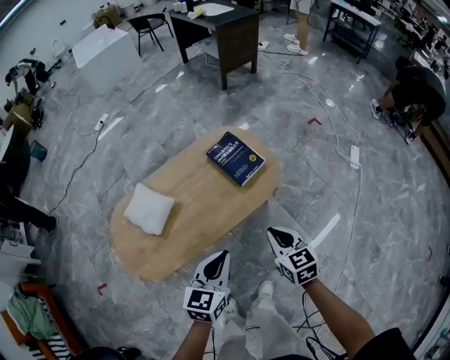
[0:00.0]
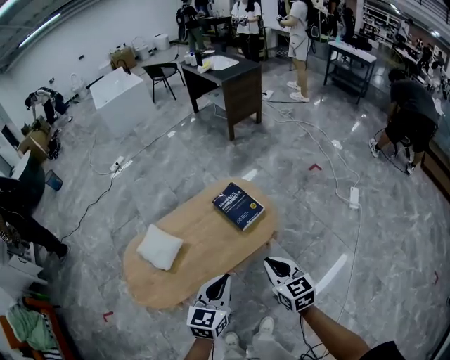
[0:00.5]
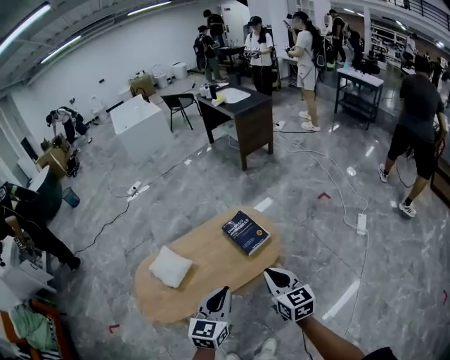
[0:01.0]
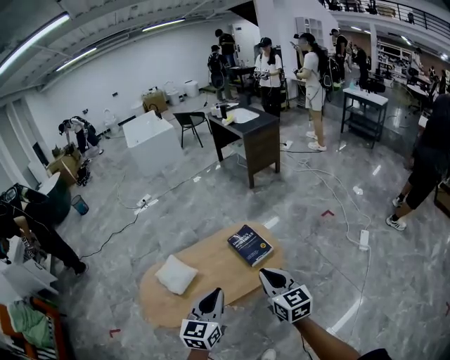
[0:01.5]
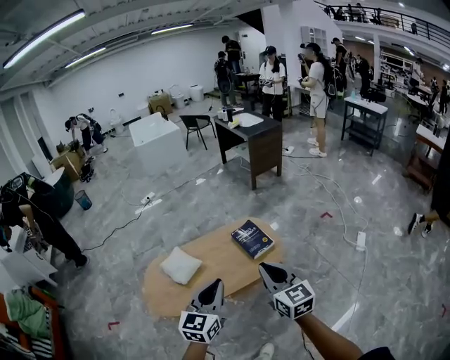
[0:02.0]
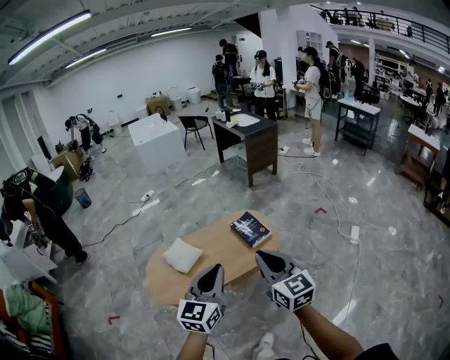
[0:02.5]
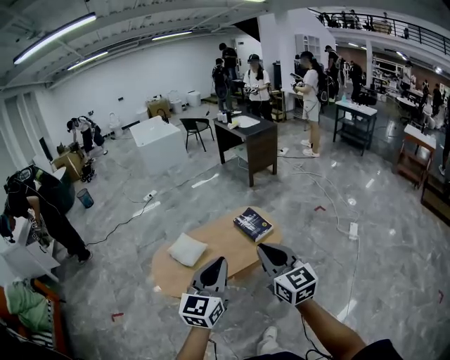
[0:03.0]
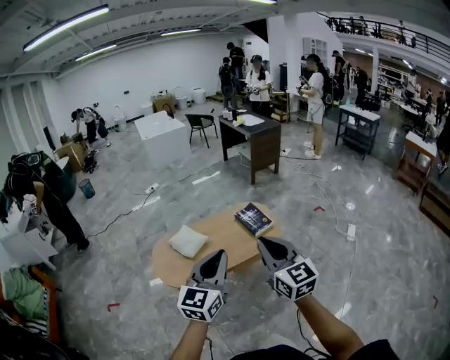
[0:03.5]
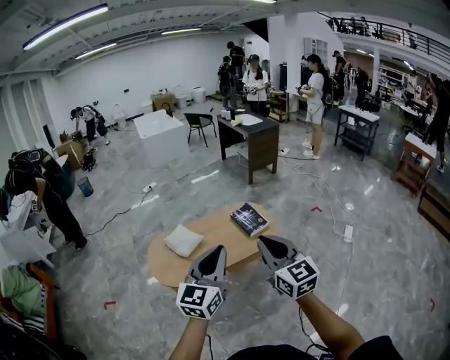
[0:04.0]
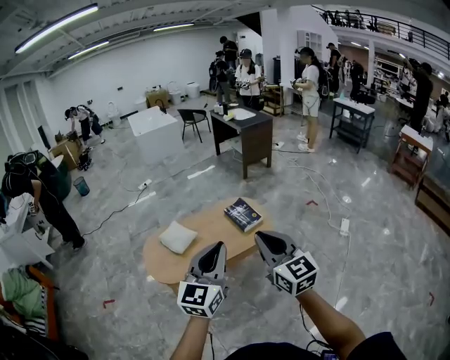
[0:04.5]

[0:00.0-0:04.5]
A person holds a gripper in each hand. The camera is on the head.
0:00.0 to 0:02.0: The two grippers go about 25 cm upward. The right gripper changes its angle by about 30 degrees; the left gripper changes its angle by some 20 degrees.
0:02.0 to 0:04.5: Both grippers move backward and upward, roughly 20 cm.

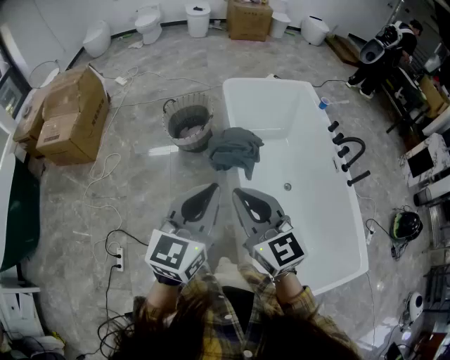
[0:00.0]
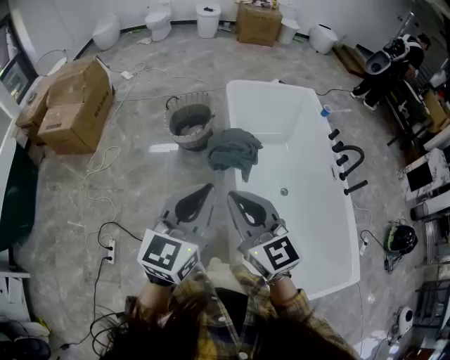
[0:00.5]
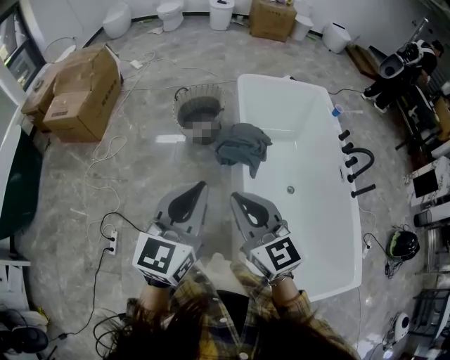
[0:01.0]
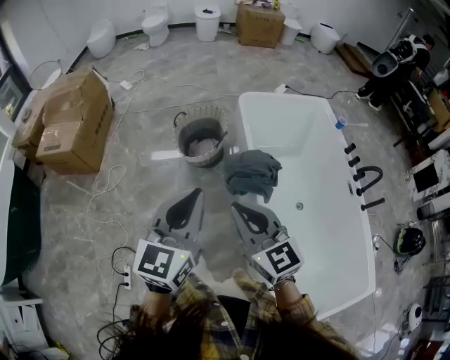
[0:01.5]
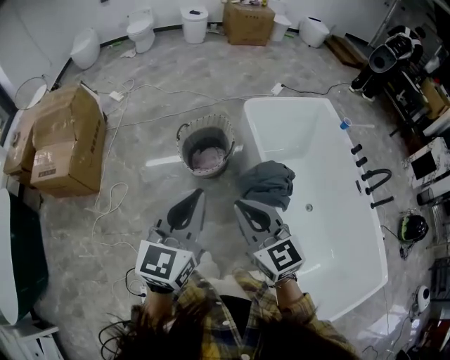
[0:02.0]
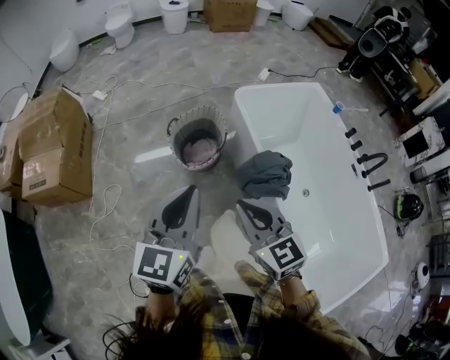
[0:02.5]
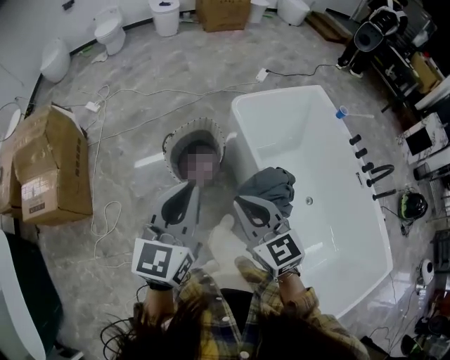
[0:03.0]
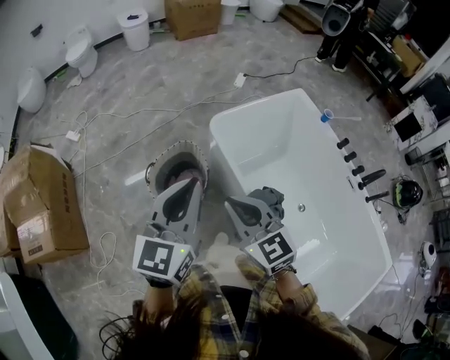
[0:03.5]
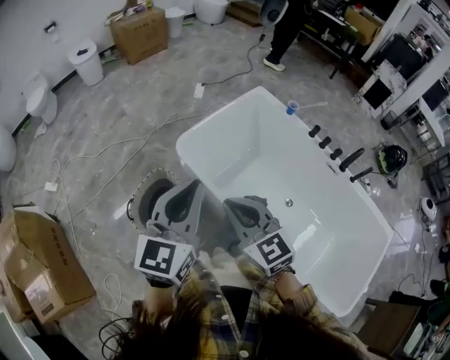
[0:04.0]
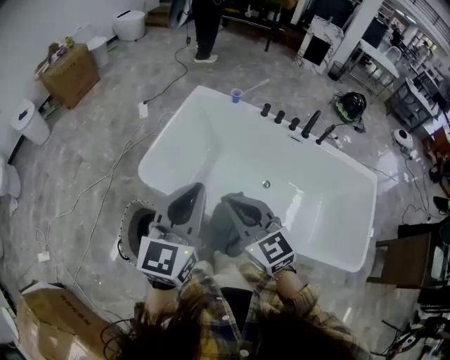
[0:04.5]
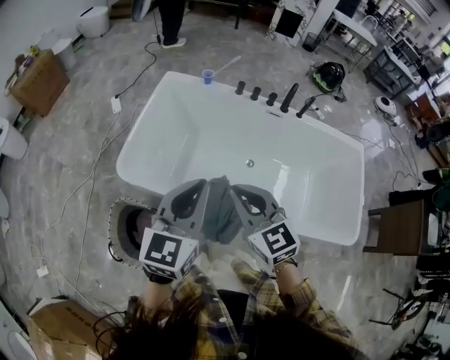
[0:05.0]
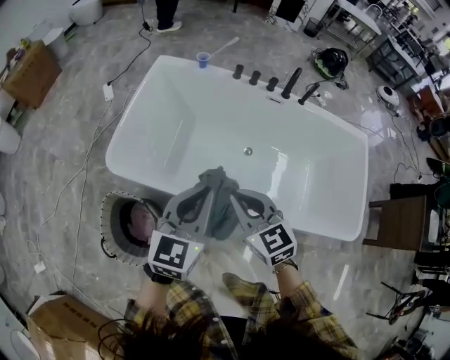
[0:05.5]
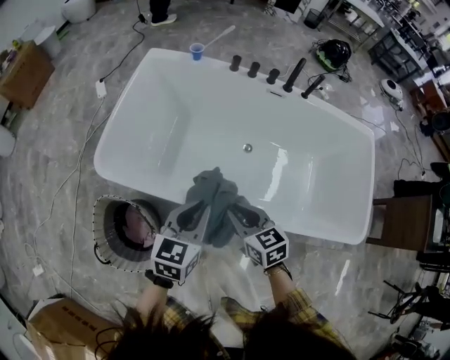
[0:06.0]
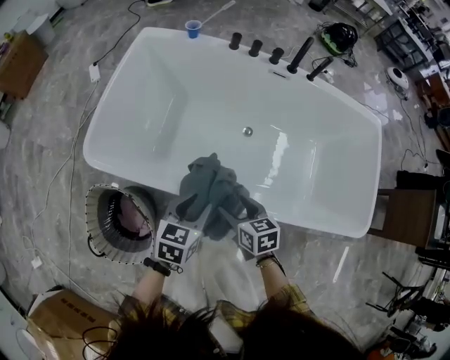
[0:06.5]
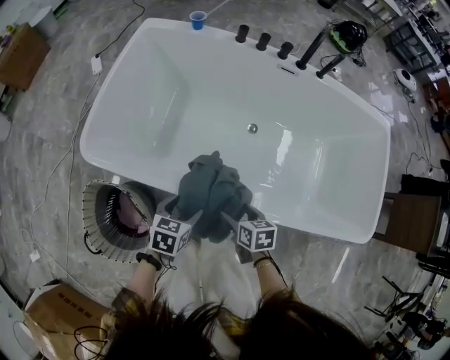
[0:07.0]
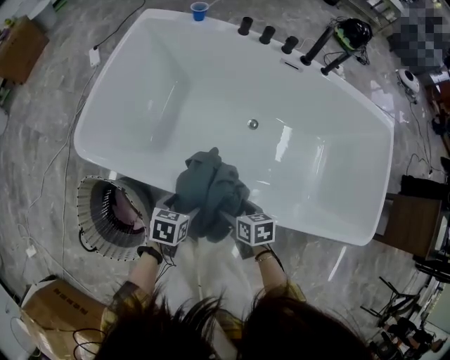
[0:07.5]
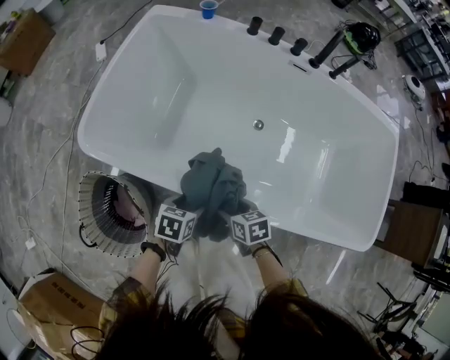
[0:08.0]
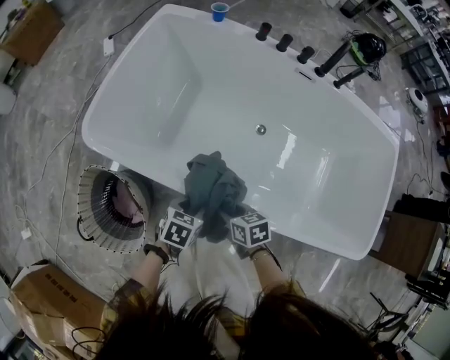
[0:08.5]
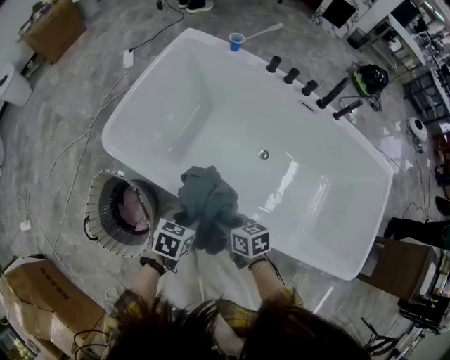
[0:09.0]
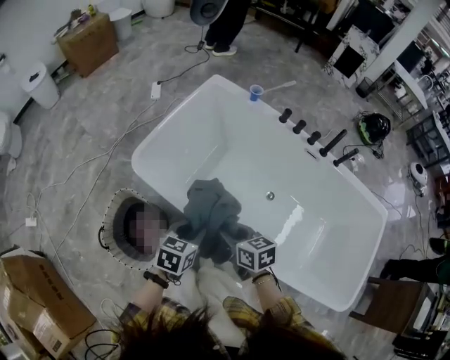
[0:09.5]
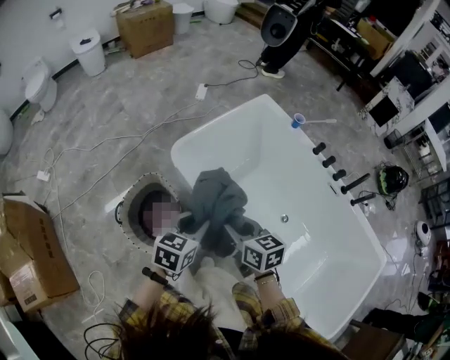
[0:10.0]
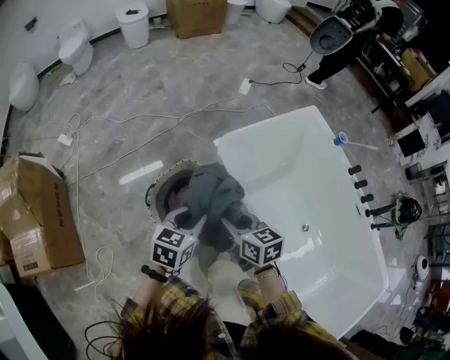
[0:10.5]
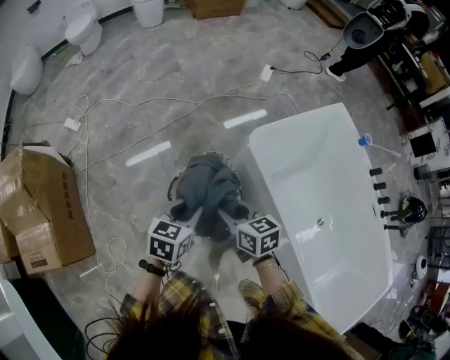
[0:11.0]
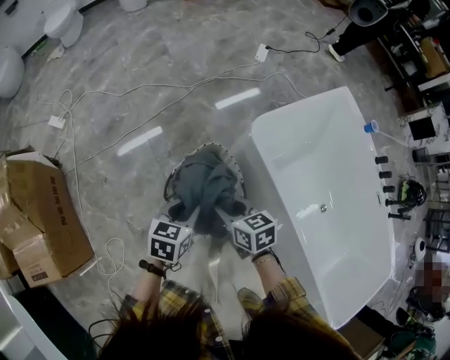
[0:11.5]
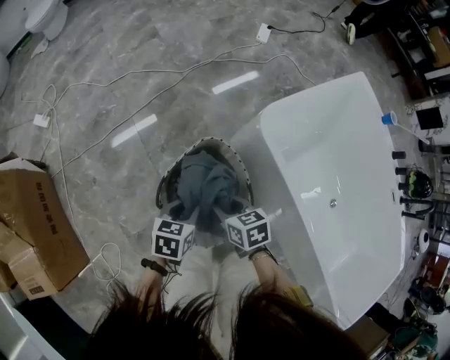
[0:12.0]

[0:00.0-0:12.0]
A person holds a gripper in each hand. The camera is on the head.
0:00.0 to 0:02.0: Both grippers move forward and to the left, roughly 30 cm.
0:02.0 to 0:04.0: The left gripper moves some 40 cm, and swivels roughly 30 degrees. Meanwhile the right gripper moves about 35 cm, and turns by about 30 degrees.
0:04.0 to 0:06.0: The two grippers go approximately 25 cm downward. The left gripper changes its angle by some 50 degrees, while the right gripper changes its angle by roughly 50 degrees.
0:06.0 to 0:08.0: Both grippers move downward, approximately 25 cm. The left gripper tips its fingers downward by approximately 30 degrees, and opens up; the right gripper rotates roughly 30 degrees, and opens.
0:08.0 to 0:10.0: Both grippers travel together upward, about 30 cm. The right gripper swivels approximately 40 degrees, and closes its fingers. Meanwhile the left gripper rotates some 40 degrees, and closes up.
0:10.0 to 0:12.0: The right gripper moves to the left, downward and forward, roughly 50 cm, and swivels roughly 30 degrees. The left gripper shifts approximately 40 cm to the left and downward, and rotates about 30 degrees.

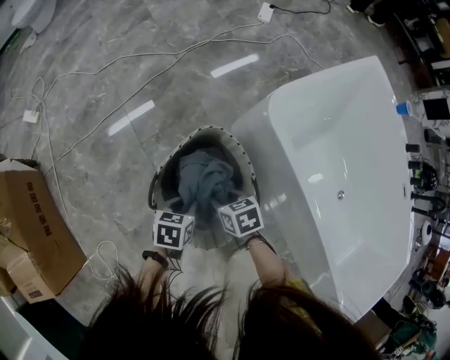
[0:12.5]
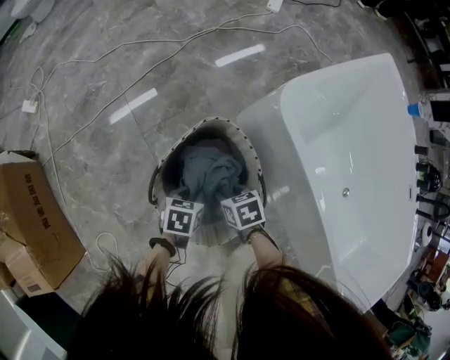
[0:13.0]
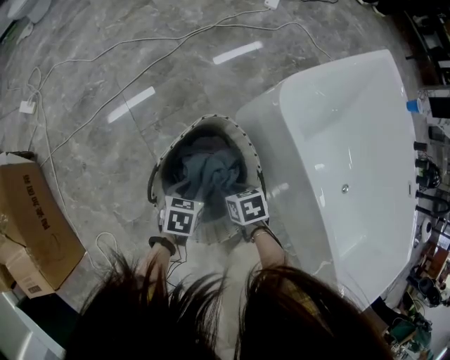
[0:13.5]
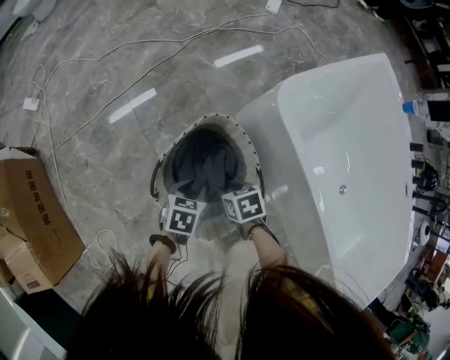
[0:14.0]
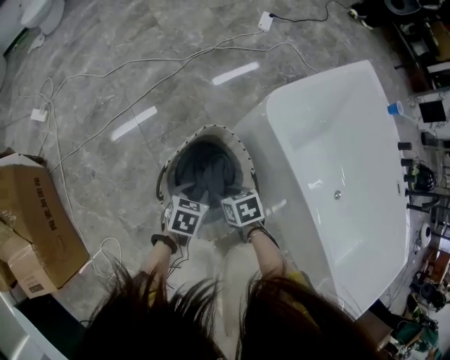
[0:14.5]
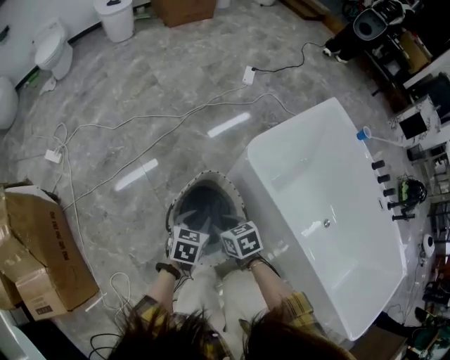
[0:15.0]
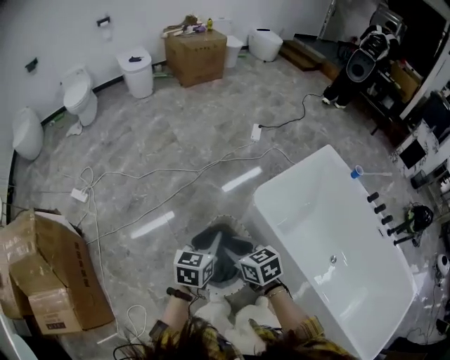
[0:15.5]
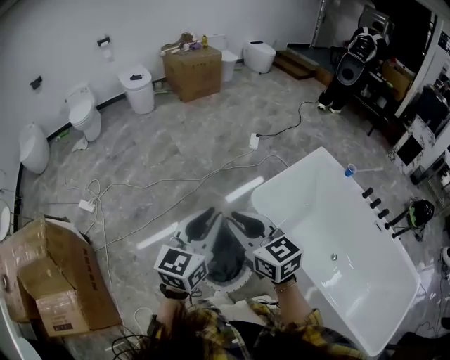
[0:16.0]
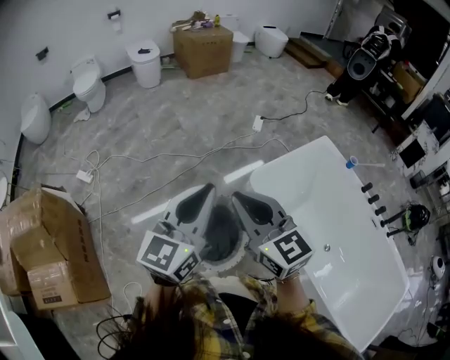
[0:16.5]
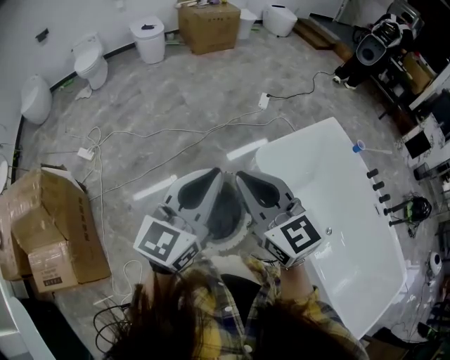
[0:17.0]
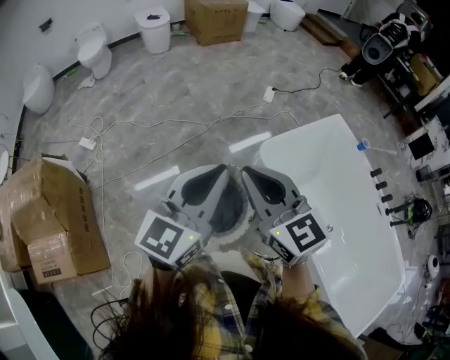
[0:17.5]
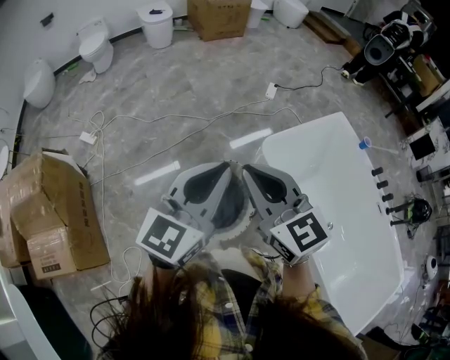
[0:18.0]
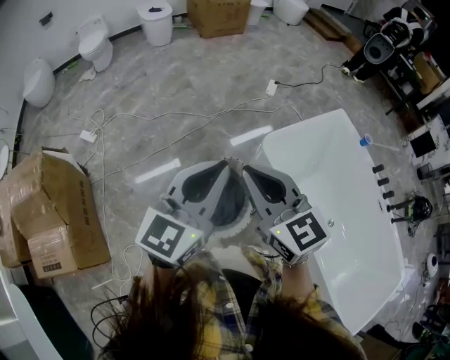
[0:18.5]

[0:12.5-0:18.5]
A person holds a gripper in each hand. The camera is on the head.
0:12.5 to 0:14.5: The right gripper travels downward and back again, some 5 cm each way.
0:14.5 to 0:16.5: Both grippers travel together upward, approximately 60 cm. The right gripper tips its fingers upward by about 60 degrees. The left gripper angles its fingers upward, by approximately 60 degrees.
0:16.5 to 0:18.5: The grippers make only small movements.

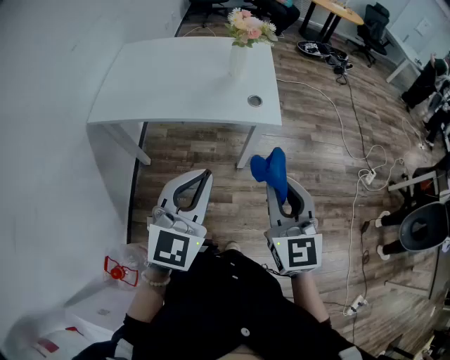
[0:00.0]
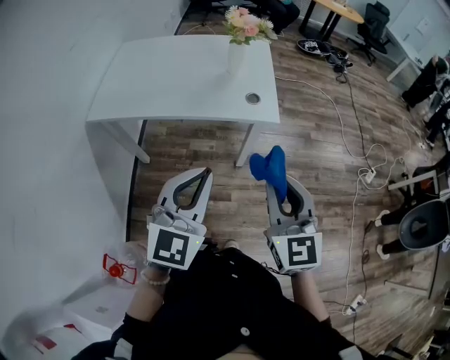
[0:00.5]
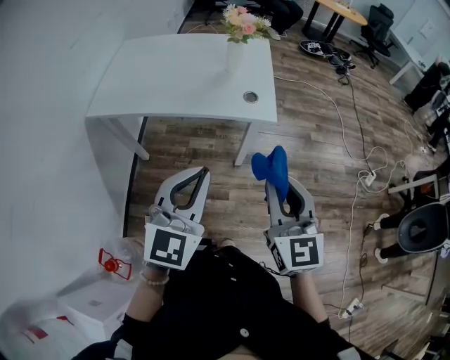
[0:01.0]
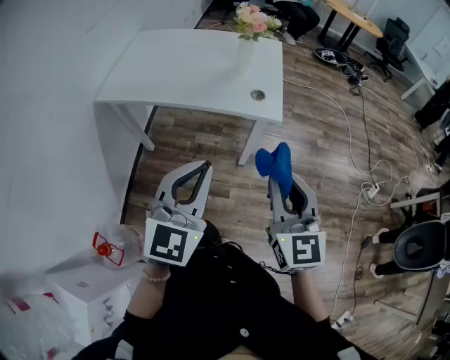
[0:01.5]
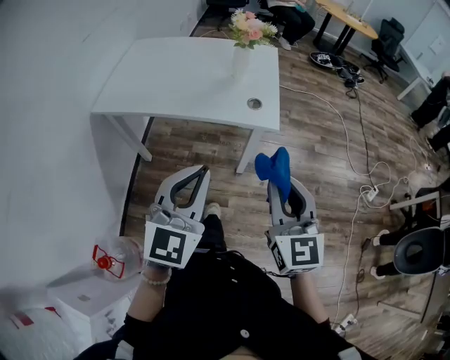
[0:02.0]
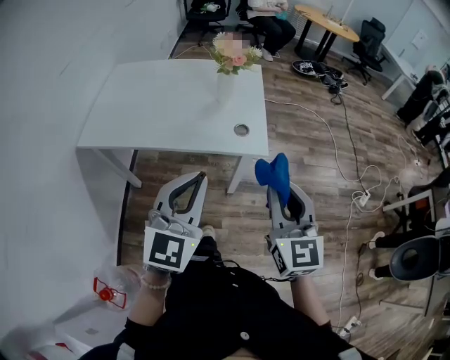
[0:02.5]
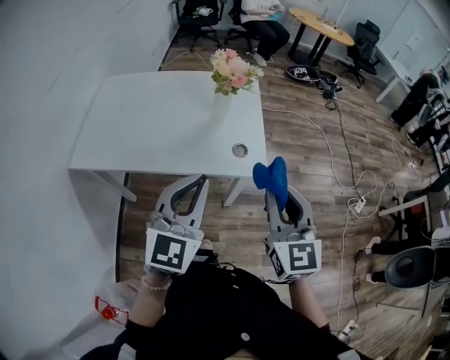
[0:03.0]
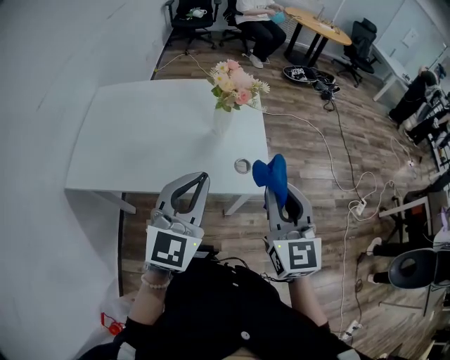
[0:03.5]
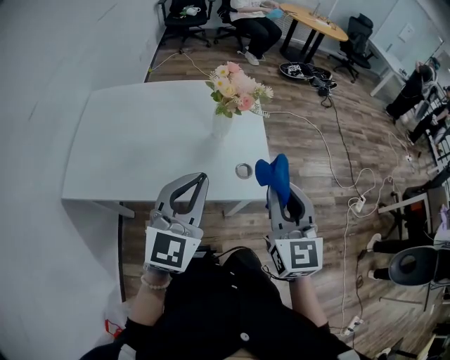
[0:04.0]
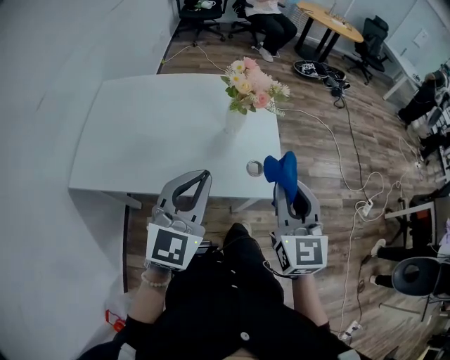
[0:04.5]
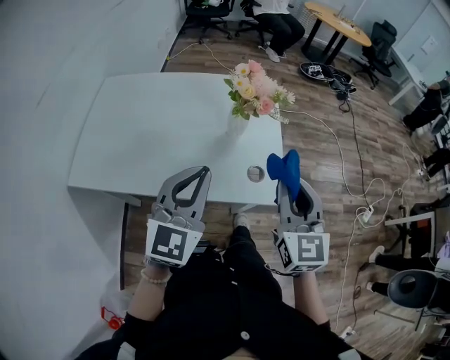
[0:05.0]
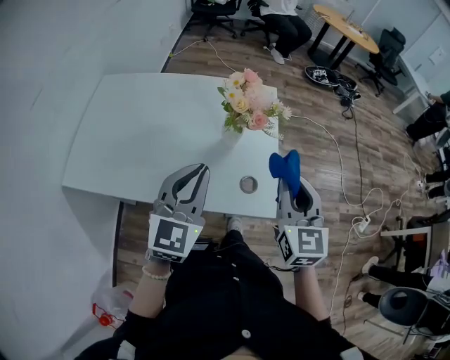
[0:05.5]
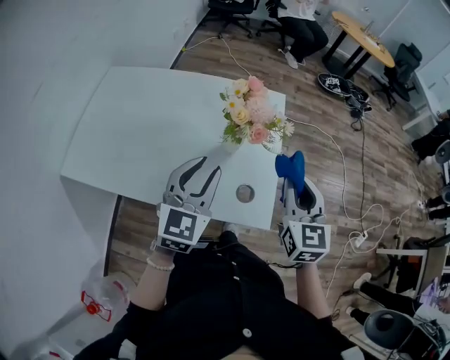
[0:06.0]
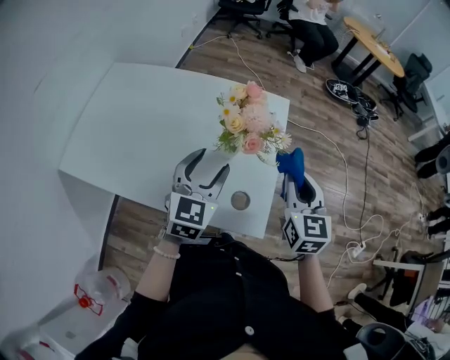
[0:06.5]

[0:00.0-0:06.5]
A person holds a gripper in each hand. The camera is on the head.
0:00.0 to 0:02.0: The right gripper goes roughly 5 cm to the right.
0:02.0 to 0:04.5: The two grippers go approximately 30 cm forward.
0:04.5 to 0:06.5: The right gripper goes approximately 20 cm forward, while the left gripper is displaced forward and downward by some 20 cm, and opens its fingers.
